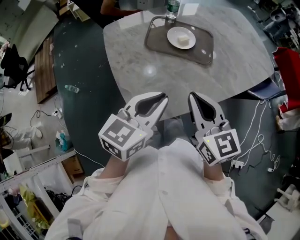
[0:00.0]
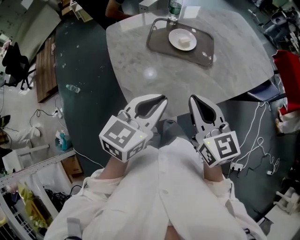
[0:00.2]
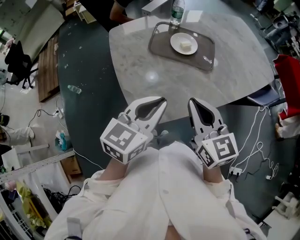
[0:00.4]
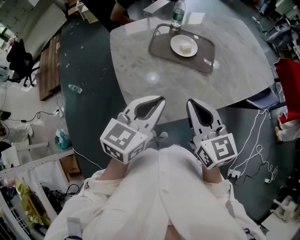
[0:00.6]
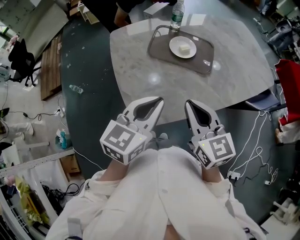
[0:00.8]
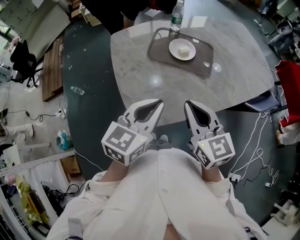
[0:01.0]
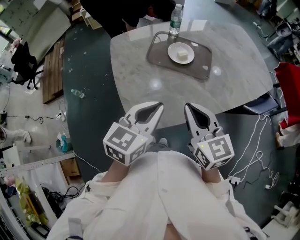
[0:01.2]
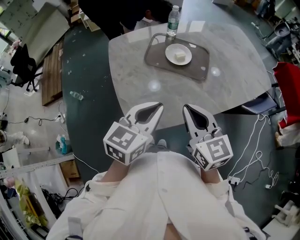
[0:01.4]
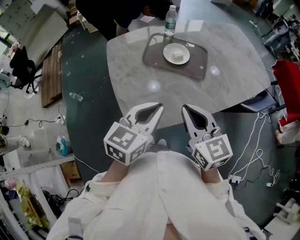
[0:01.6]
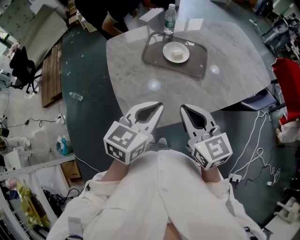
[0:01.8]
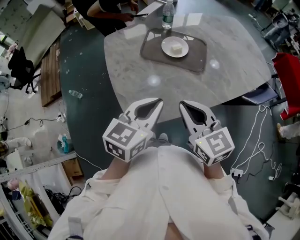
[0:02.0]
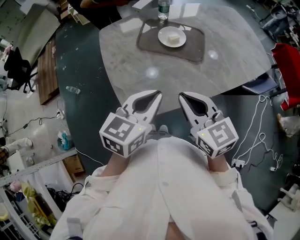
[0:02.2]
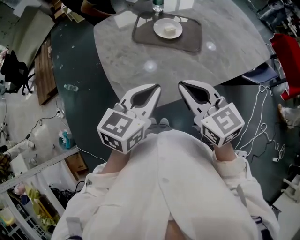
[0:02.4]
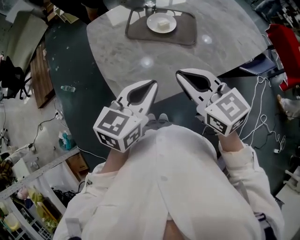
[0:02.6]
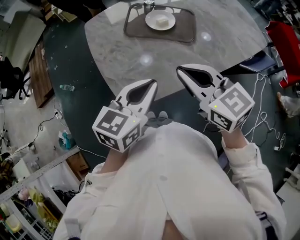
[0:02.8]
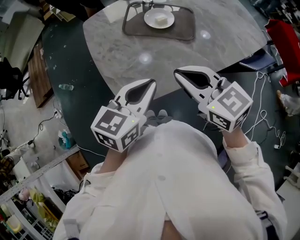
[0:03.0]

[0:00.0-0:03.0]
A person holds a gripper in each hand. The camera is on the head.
0:00.0 to 0:01.6: The grippers stay close to where they were, moving slightly.
0:01.6 to 0:03.0: The grippers make only small movements.

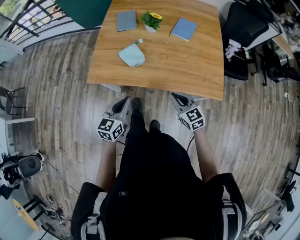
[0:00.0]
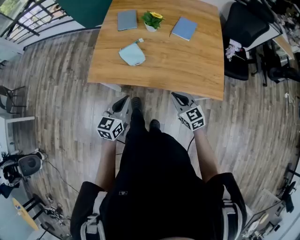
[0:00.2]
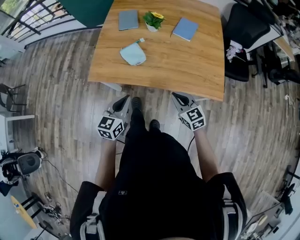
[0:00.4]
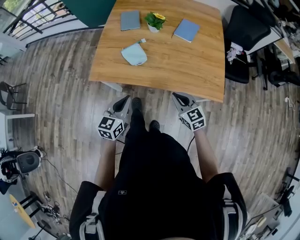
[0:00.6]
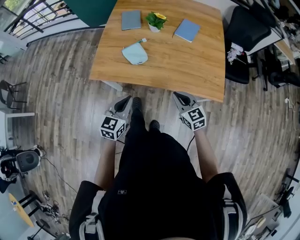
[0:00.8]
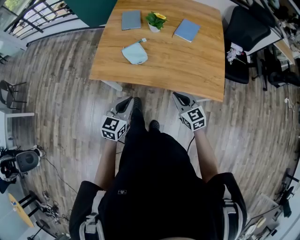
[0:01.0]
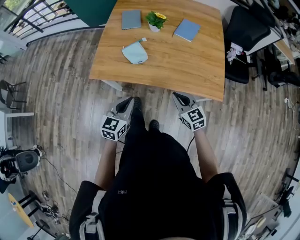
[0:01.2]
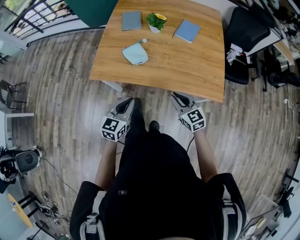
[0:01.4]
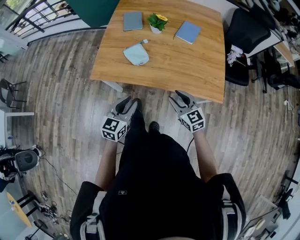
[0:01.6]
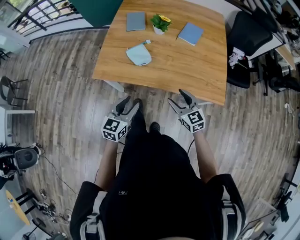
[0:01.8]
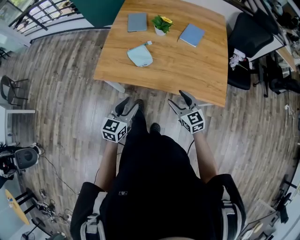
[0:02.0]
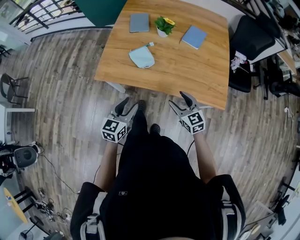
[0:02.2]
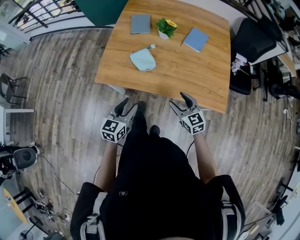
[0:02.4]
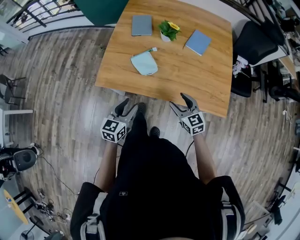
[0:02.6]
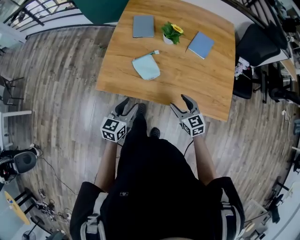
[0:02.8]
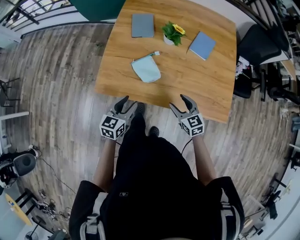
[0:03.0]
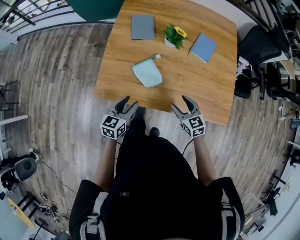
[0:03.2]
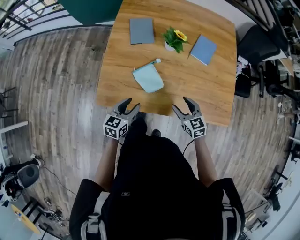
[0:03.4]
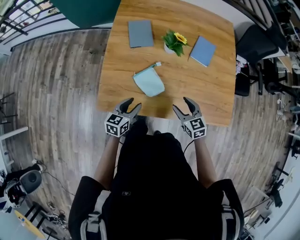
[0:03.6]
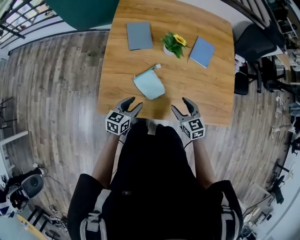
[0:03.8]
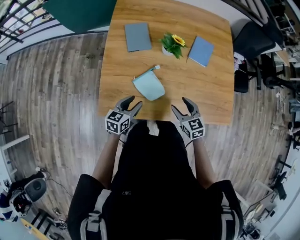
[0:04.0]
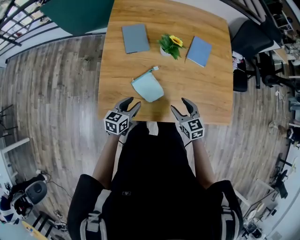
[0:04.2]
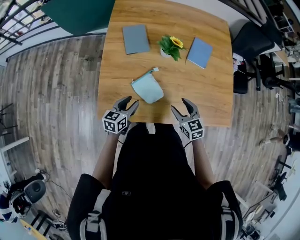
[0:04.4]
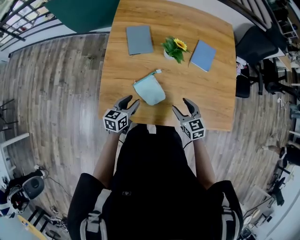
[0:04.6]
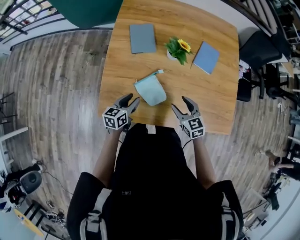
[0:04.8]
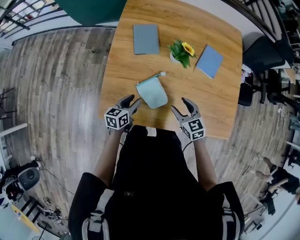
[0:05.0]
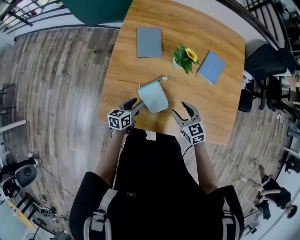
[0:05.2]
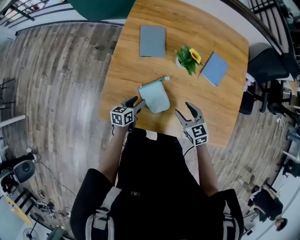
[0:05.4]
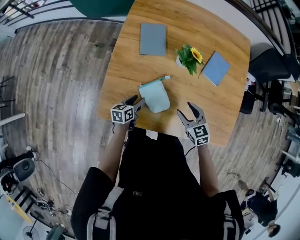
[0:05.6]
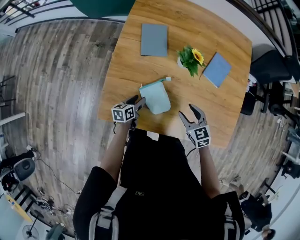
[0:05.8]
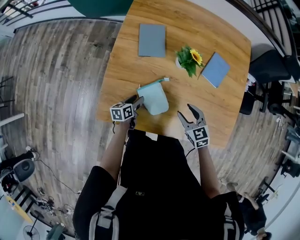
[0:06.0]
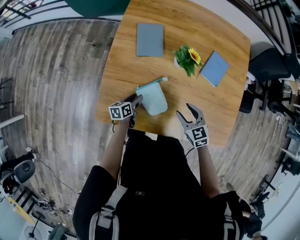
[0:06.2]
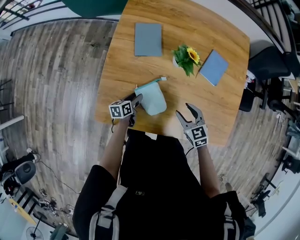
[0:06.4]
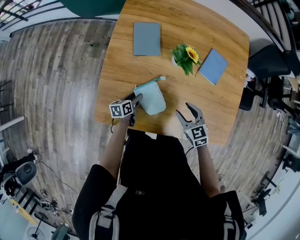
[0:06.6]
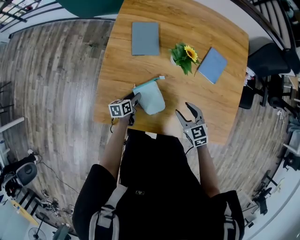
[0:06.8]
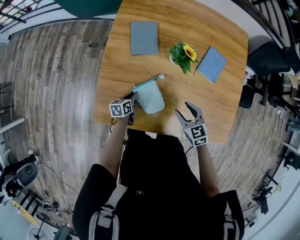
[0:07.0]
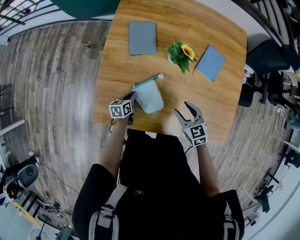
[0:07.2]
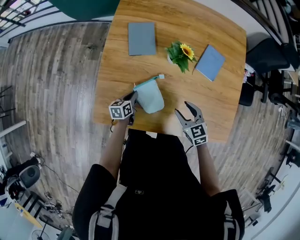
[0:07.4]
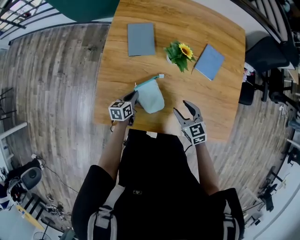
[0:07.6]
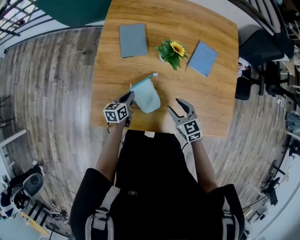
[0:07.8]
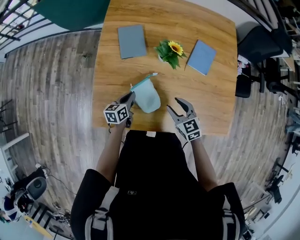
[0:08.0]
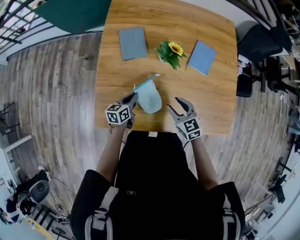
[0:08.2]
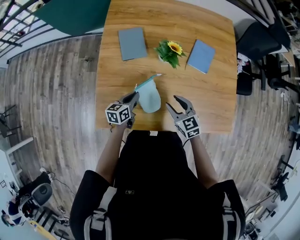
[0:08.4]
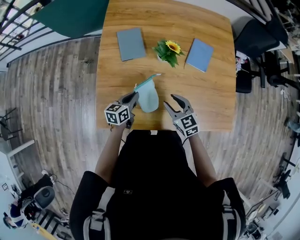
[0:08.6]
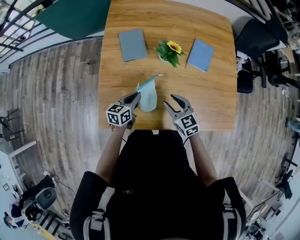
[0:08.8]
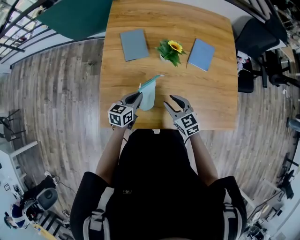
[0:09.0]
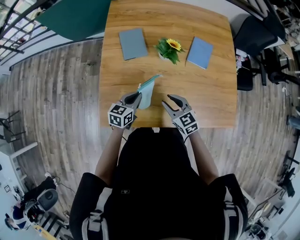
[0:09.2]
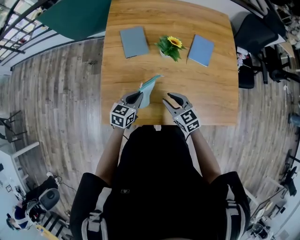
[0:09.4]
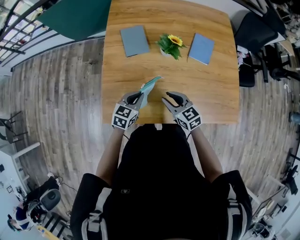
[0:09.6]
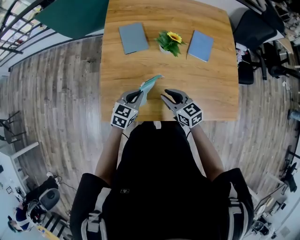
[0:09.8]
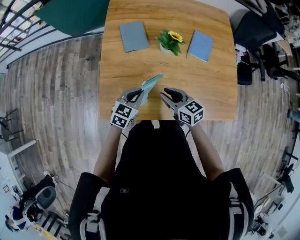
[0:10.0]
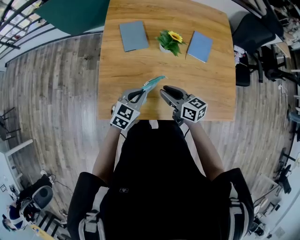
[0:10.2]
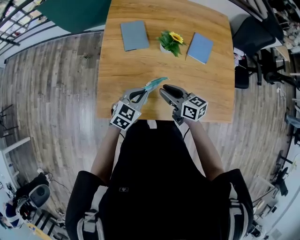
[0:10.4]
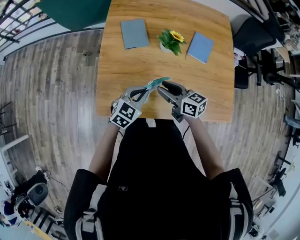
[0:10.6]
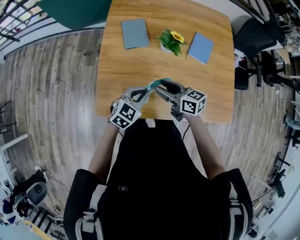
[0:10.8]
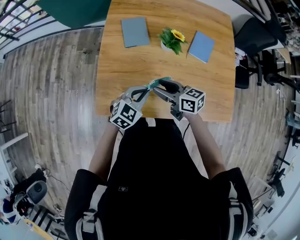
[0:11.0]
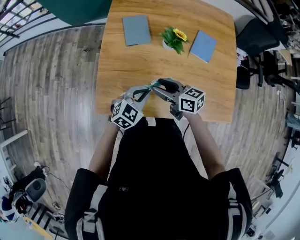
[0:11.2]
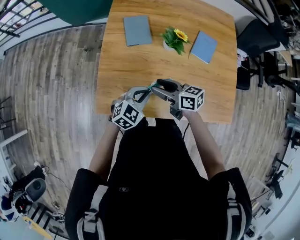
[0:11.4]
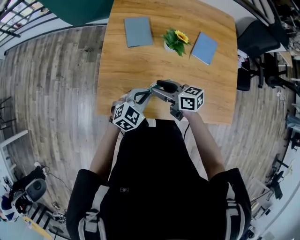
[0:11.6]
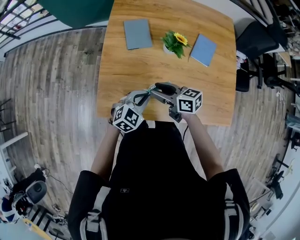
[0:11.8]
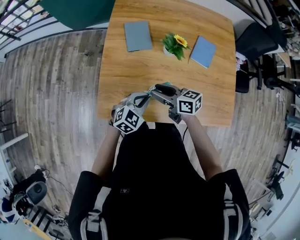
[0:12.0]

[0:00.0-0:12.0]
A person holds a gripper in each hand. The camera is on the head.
0:00.0 to 0:01.6: The right gripper opens; the left gripper opens up.
0:01.6 to 0:03.0: The right gripper goes roughly 15 cm forward, and opens up. The left gripper heads forward and to the left, covering about 15 cm.
0:03.0 to 0:04.4: The left gripper shifts some 15 cm forward and downward. The right gripper moves forward, roughly 10 cm.
0:04.4 to 0:06.0: The right gripper travels forward by about 5 cm. The left gripper travels downward and forward by about 15 cm, and swivels approximately 30 degrees.
0:06.0 to 0:07.6: The left gripper closes up.
0:07.6 to 0:09.0: The right gripper moves to the left, roughly 5 cm, while the left gripper heads upward, covering about 10 cm, and changes its angle by roughly 20 degrees.
0:09.0 to 0:10.4: The right gripper shifts by some 5 cm, and rotates roughly 30 degrees, while the left gripper heads backward and upward, covering roughly 10 cm, and rotates some 30 degrees.
0:10.4 to 0:12.0: The right gripper moves roughly 5 cm.

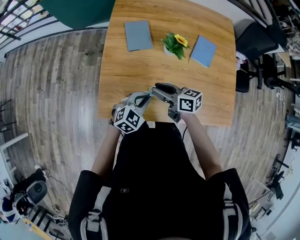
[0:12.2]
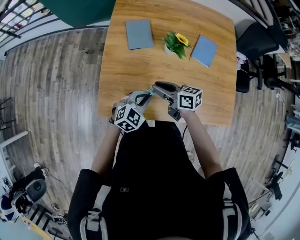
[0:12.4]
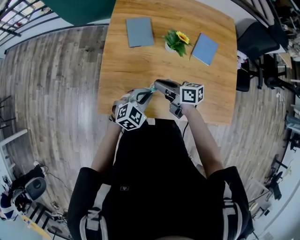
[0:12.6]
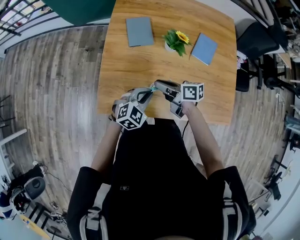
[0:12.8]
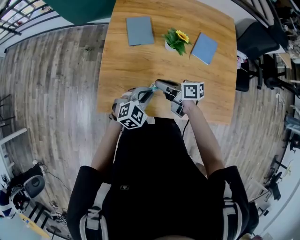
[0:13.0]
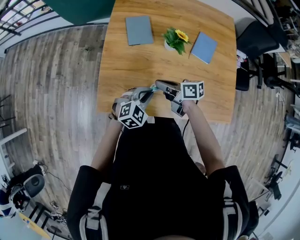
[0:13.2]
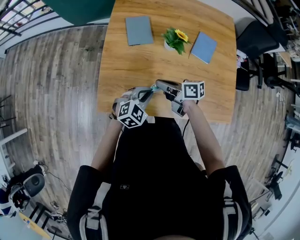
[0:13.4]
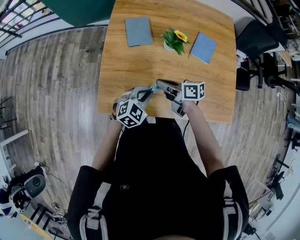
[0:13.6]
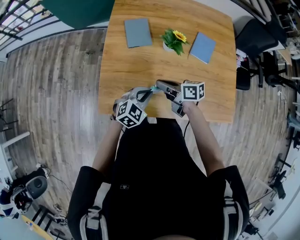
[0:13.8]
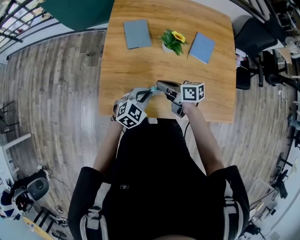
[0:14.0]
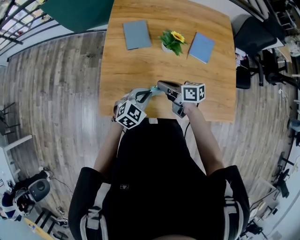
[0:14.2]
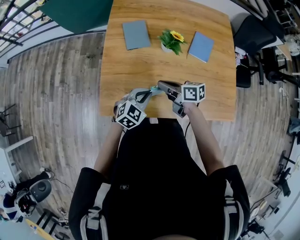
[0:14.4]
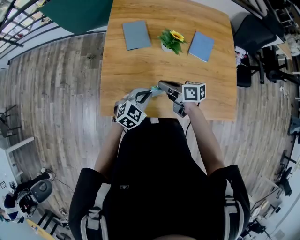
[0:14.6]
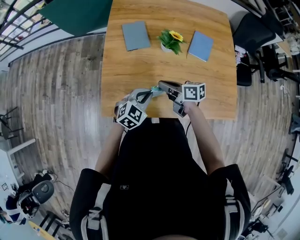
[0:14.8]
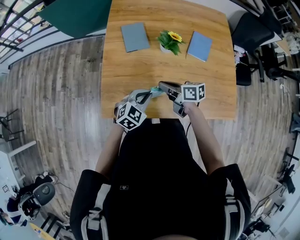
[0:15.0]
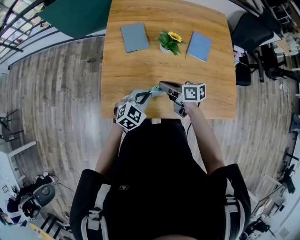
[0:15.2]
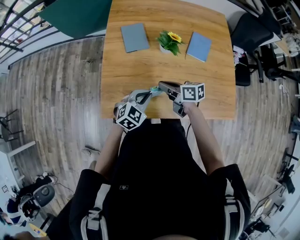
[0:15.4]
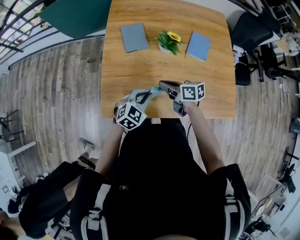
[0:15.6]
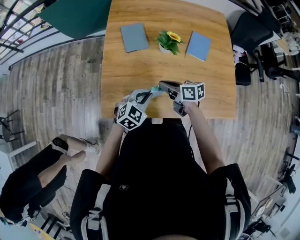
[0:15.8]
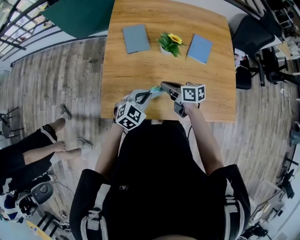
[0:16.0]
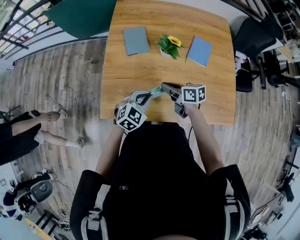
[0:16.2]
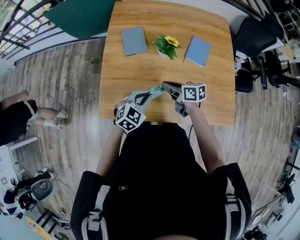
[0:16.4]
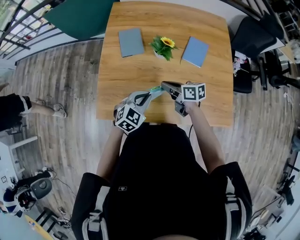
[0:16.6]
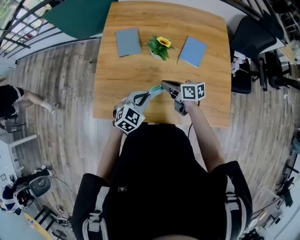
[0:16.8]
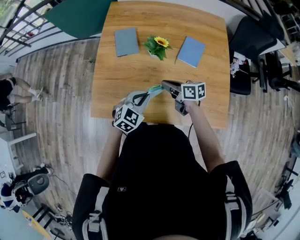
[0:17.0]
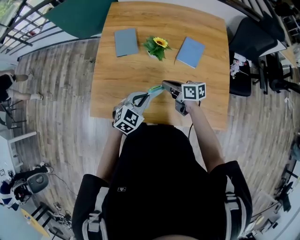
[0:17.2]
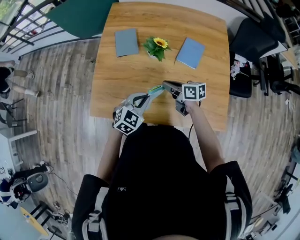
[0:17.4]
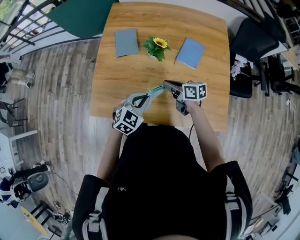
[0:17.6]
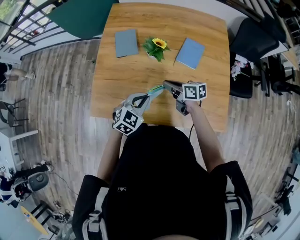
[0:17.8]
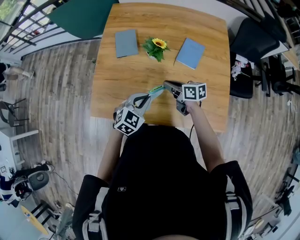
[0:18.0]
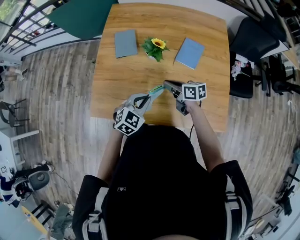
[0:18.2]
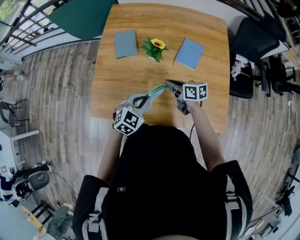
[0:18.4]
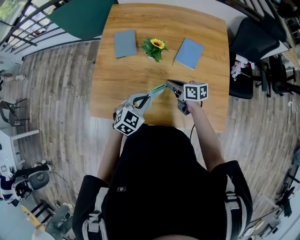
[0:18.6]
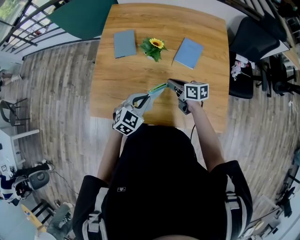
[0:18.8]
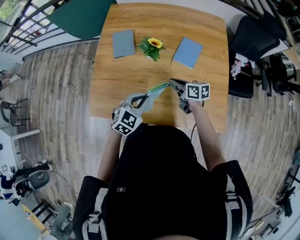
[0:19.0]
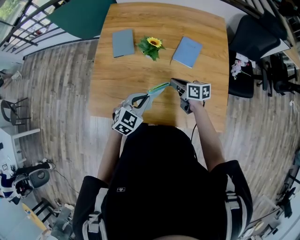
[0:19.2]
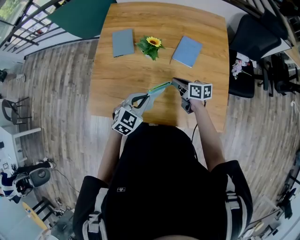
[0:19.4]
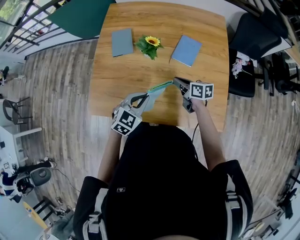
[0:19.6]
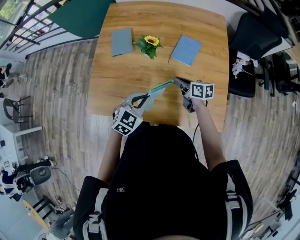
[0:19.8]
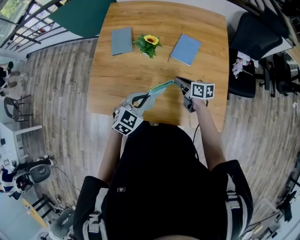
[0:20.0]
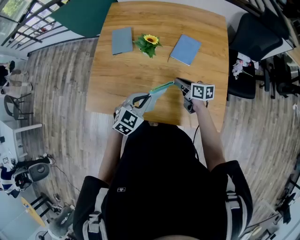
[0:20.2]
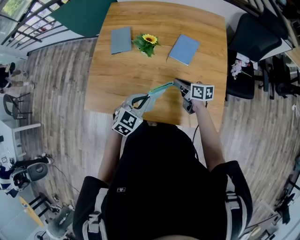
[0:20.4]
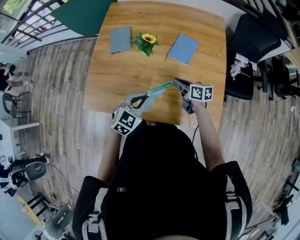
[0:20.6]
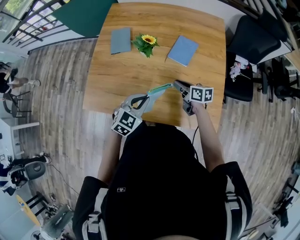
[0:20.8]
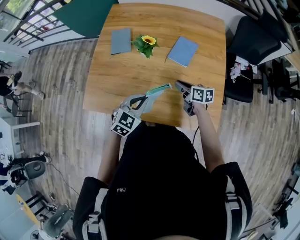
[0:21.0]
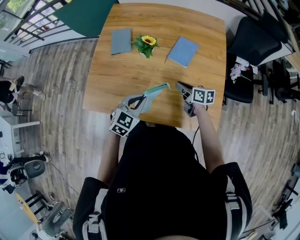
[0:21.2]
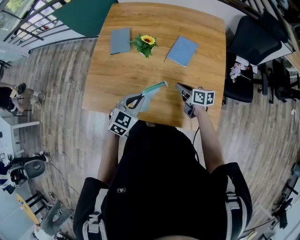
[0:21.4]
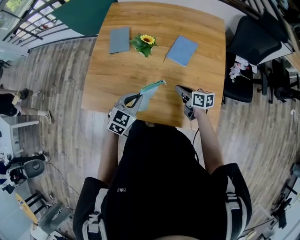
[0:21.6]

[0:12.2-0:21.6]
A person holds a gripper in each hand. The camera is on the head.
0:12.2 to 0:13.8: The right gripper closes.
0:13.8 to 0:15.4: The grippers move only a little.
0:15.4 to 0:17.0: The grippers both shift to the right by approximately 10 cm.
0:17.0 to 0:18.4: The grippers stay close to where they were, moving slightly.
0:18.4 to 0:20.0: The right gripper moves to the right, approximately 10 cm; the left gripper ends up some 5 cm from where it was.
0:20.0 to 0:21.6: The right gripper shifts by some 5 cm.
